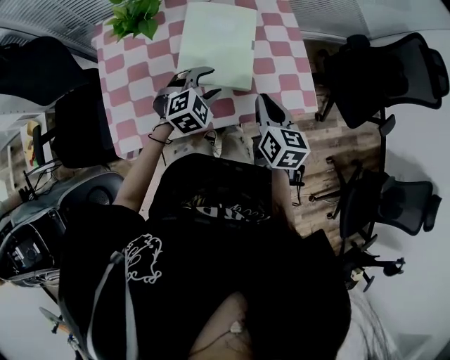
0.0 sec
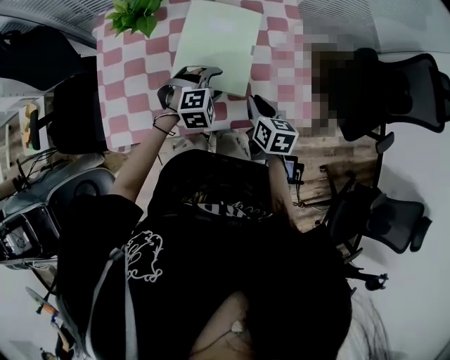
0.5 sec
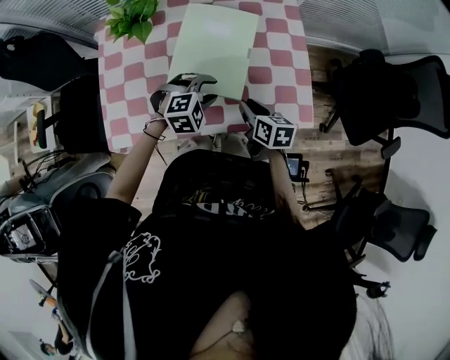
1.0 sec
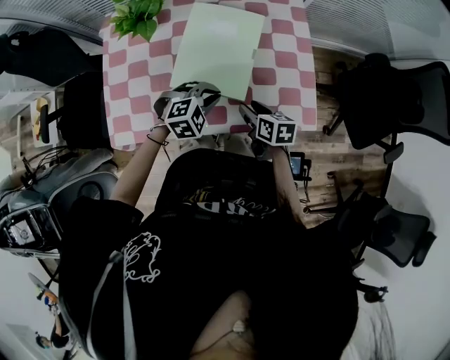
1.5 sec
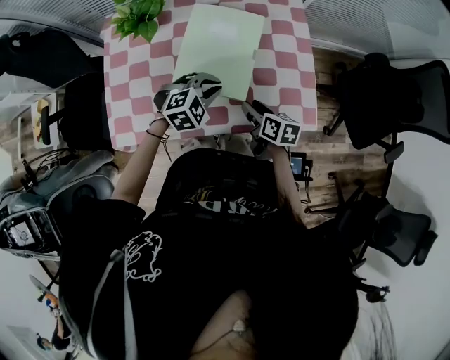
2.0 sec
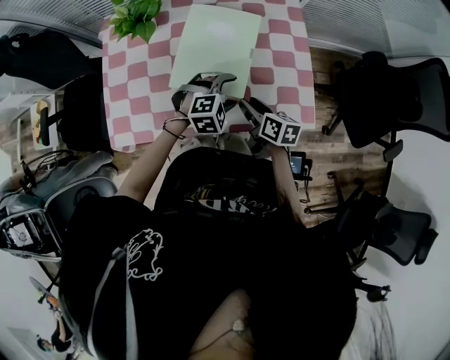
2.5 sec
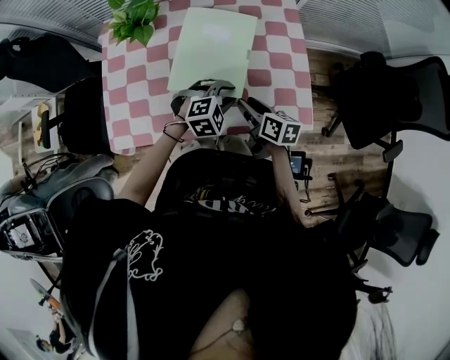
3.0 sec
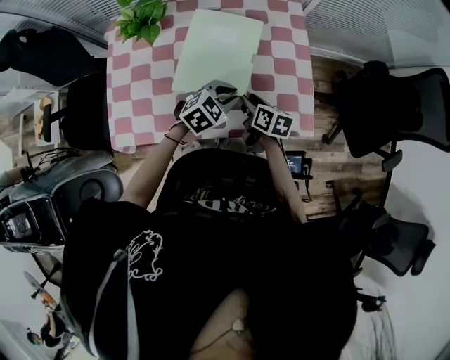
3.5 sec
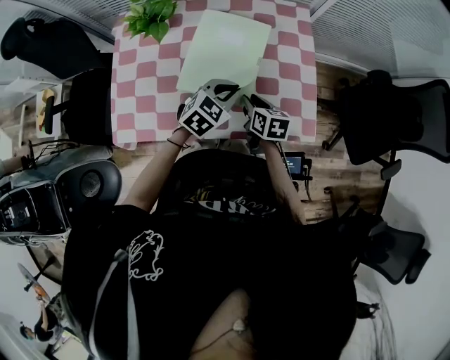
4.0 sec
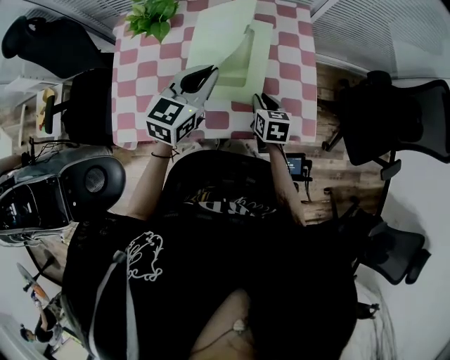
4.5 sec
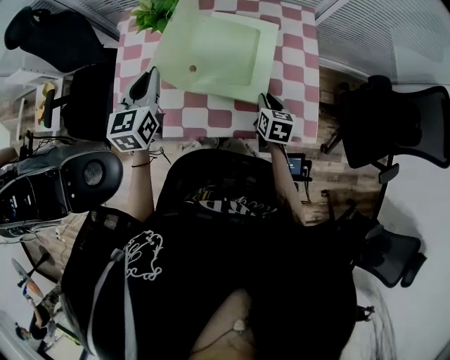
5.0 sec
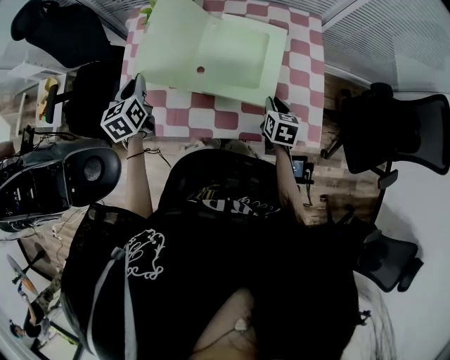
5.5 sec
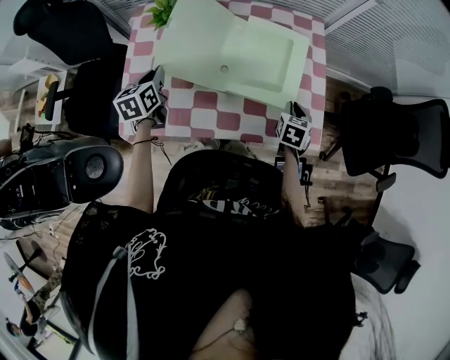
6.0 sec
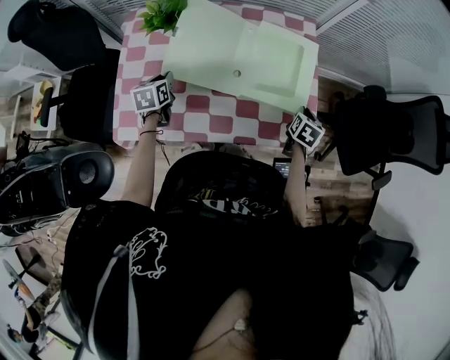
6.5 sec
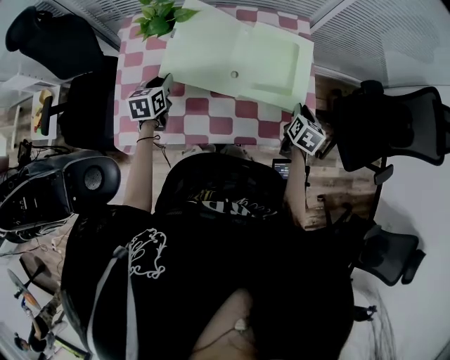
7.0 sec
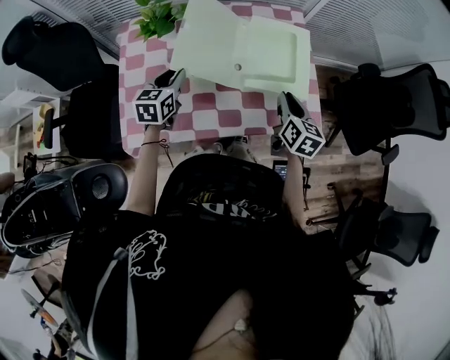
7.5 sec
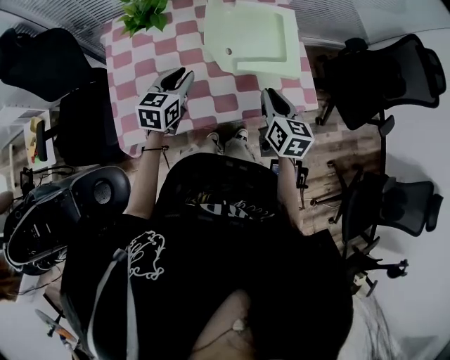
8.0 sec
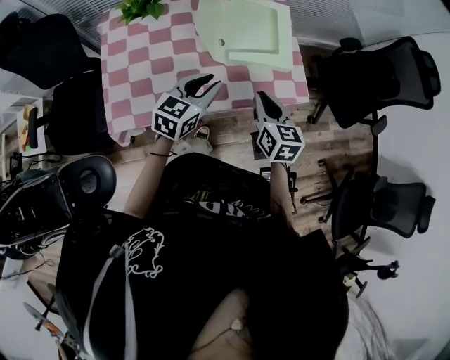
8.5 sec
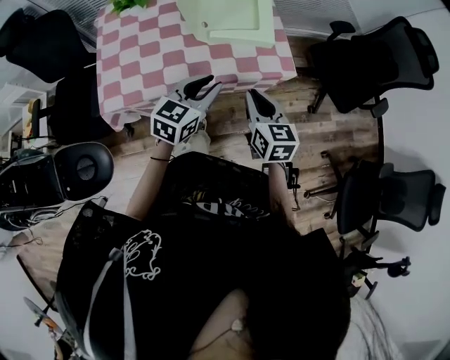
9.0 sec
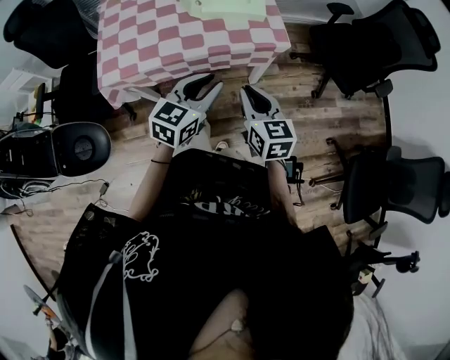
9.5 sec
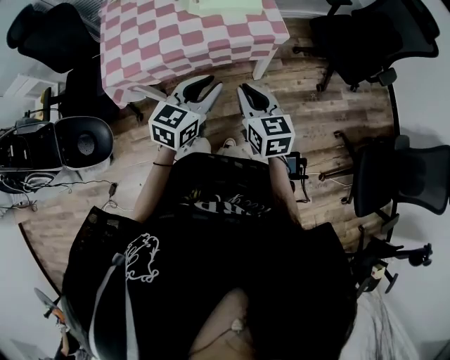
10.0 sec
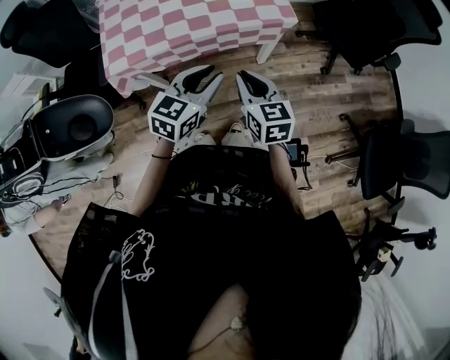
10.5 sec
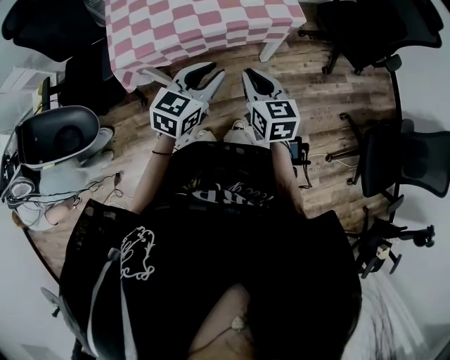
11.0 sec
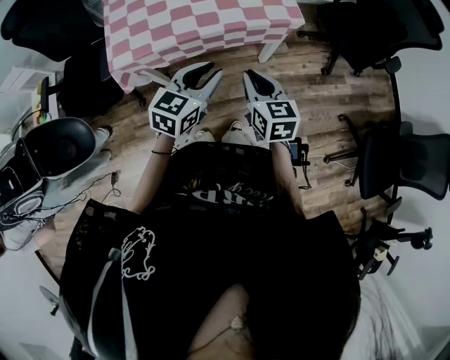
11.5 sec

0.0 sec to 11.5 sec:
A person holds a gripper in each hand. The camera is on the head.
0.0 sec to 2.0 sec: The right gripper goes roughly 15 cm downward, swivels roughly 30 degrees, and opens up, while the left gripper closes its fingers.
2.0 sec to 4.0 sec: The left gripper changes place by some 5 cm, rotates roughly 30 degrees, and opens, then closes again.
4.0 sec to 6.0 sec: The left gripper moves to the left, approximately 30 cm, and turns by some 60 degrees. Meanwhile the right gripper shifts approximately 10 cm to the right, and changes its angle by some 30 degrees.
6.0 sec to 7.5 sec: The right gripper moves upward and backward, about 10 cm, and swivels about 30 degrees. Meanwhile the left gripper goes approximately 10 cm to the right, moves about 5 cm downward and comes back, and rotates about 30 degrees.
7.5 sec to 9.5 sec: The left gripper goes about 50 cm to the right and backward, and rotates approximately 30 degrees; the right gripper shifts approximately 30 cm backward.
9.5 sec to 11.5 sec: The left gripper goes approximately 10 cm to the left and backward; the right gripper travels to the left by approximately 5 cm.

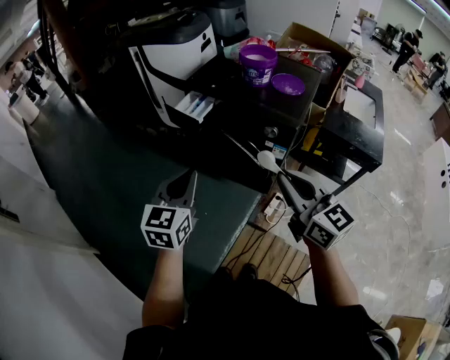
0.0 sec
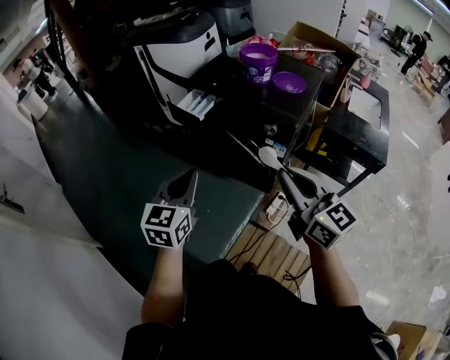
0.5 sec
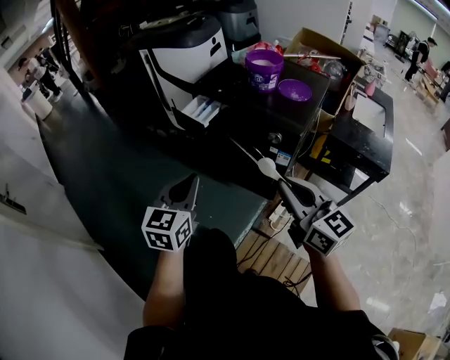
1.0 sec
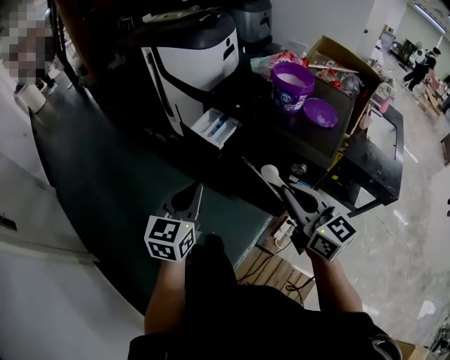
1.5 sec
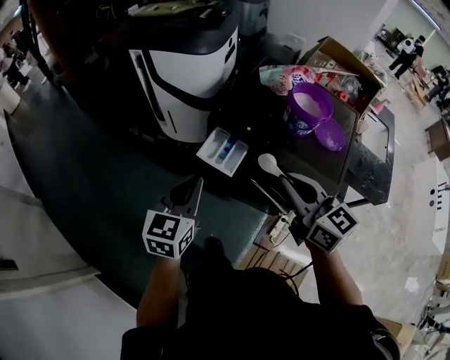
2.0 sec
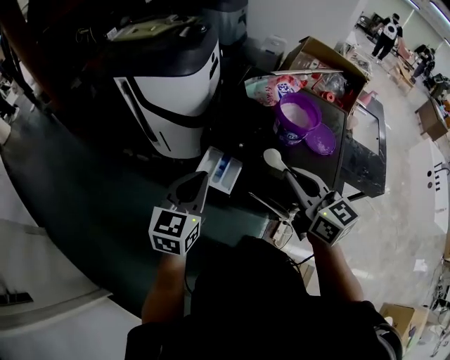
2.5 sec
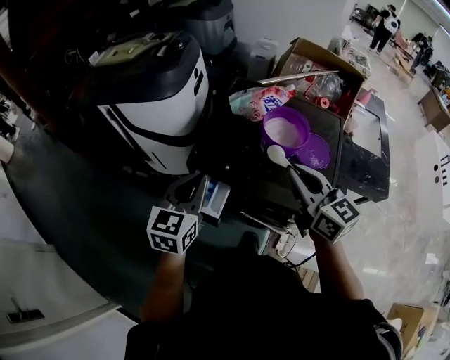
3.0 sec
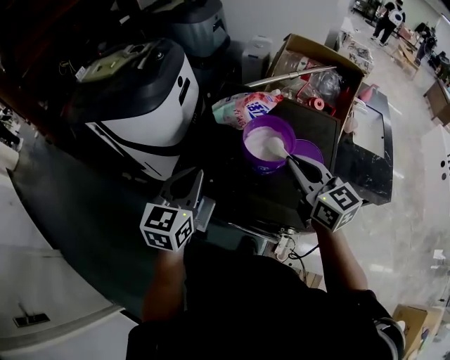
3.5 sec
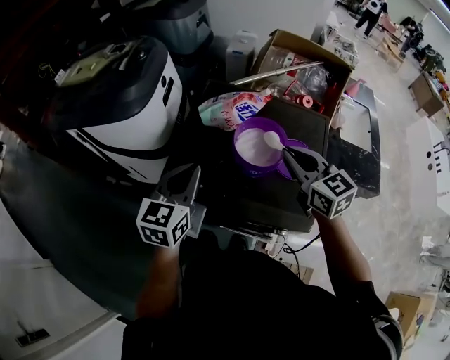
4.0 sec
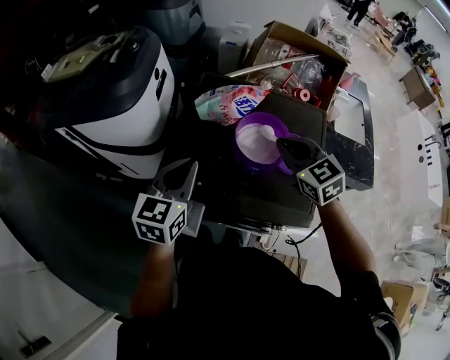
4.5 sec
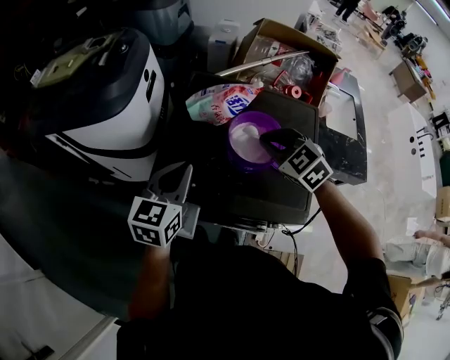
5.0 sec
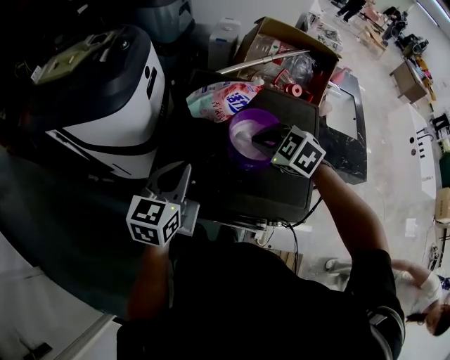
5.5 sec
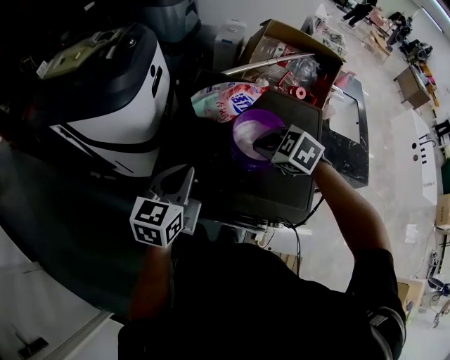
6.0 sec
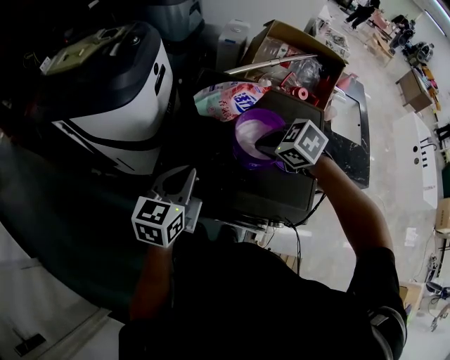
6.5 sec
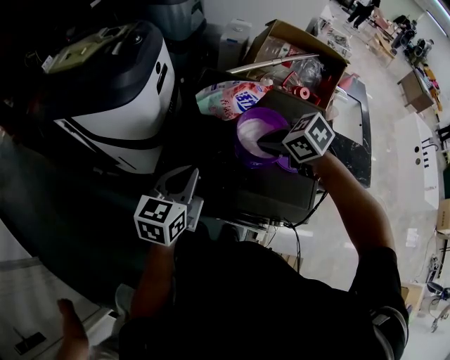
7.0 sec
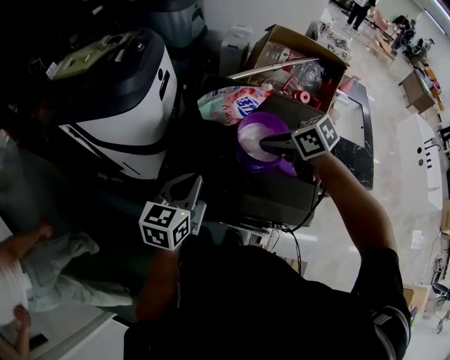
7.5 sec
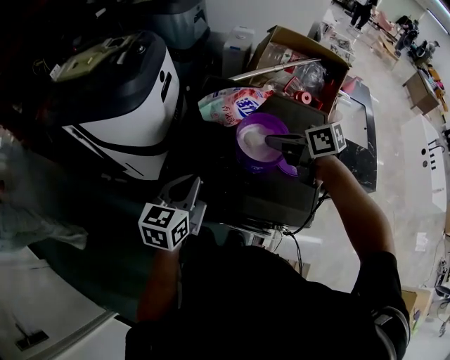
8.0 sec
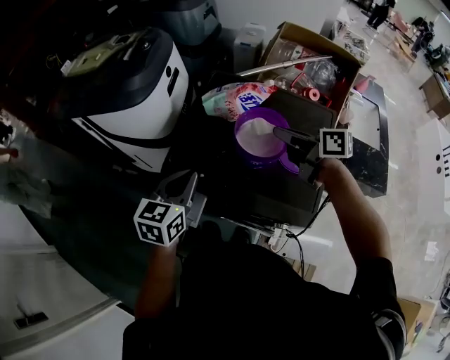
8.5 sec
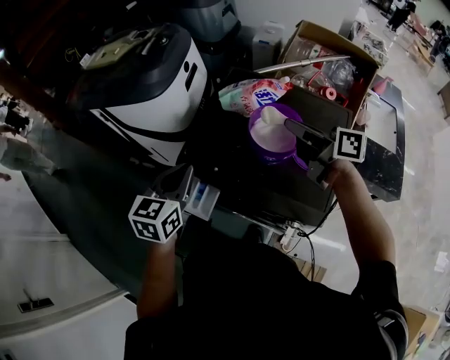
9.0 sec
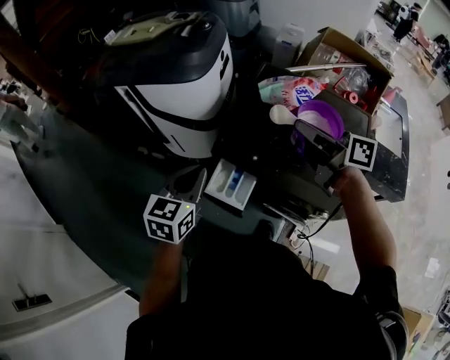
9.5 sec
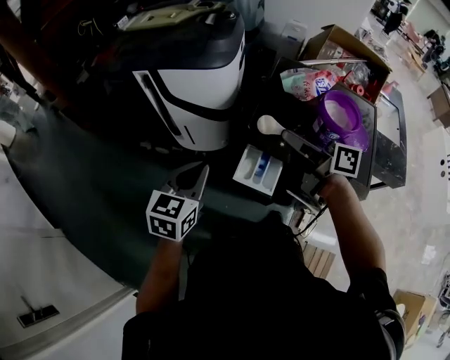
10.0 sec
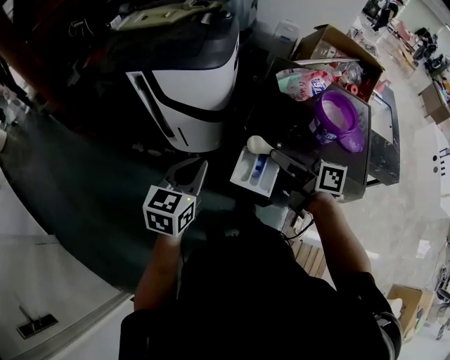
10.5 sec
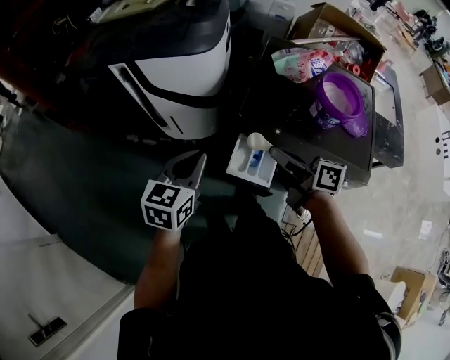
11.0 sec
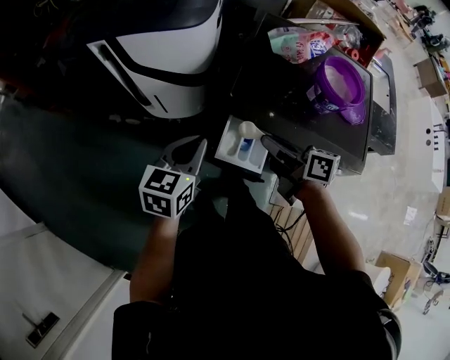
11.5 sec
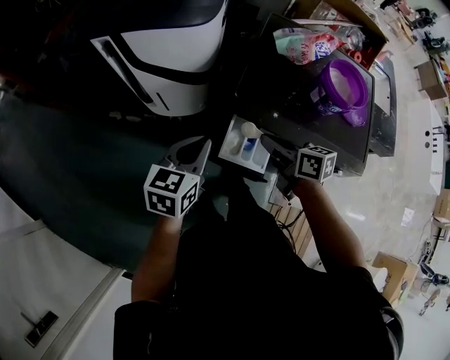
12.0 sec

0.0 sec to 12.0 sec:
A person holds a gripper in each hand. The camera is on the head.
0.0 sec to 2.0 sec: The two grippers go about 30 cm forward.
2.0 sec to 4.0 sec: Both grippers travel together forward and to the right, roughly 30 cm.
4.0 sec to 6.0 sec: The right gripper travels downward and to the left by roughly 10 cm, and tilts its fingers roughly 40 degrees downward.
6.0 sec to 8.0 sec: The right gripper changes place by some 5 cm, and rolls clockwise, seen from behind, by approximately 50 degrees.
8.0 sec to 10.0 sec: Both grippers move to the left, approximately 30 cm. The right gripper swivels some 30 degrees.
10.0 sec to 12.0 sec: The right gripper shifts about 20 cm downward, and swivels some 30 degrees, while the left gripper is displaced downward by about 10 cm.

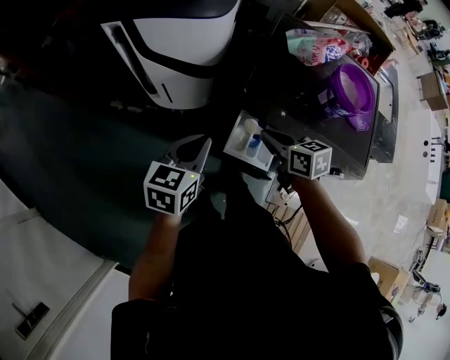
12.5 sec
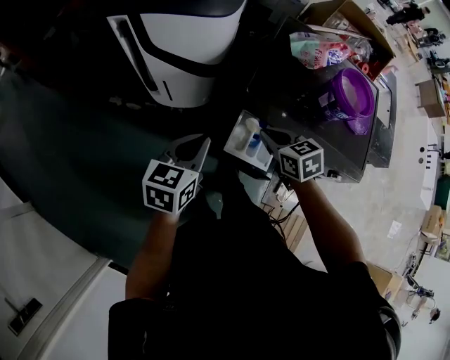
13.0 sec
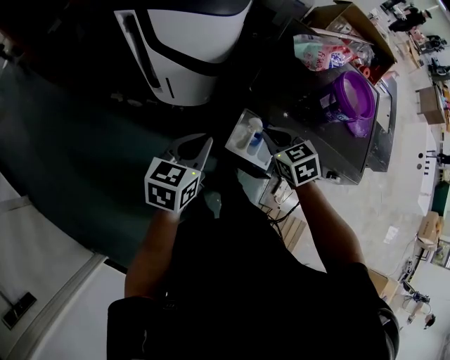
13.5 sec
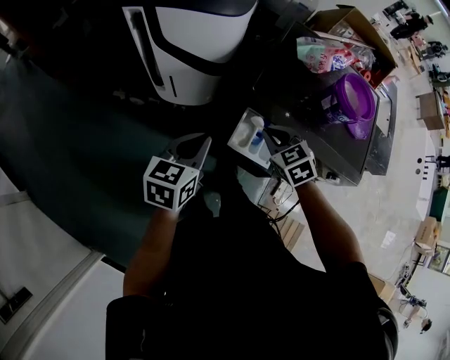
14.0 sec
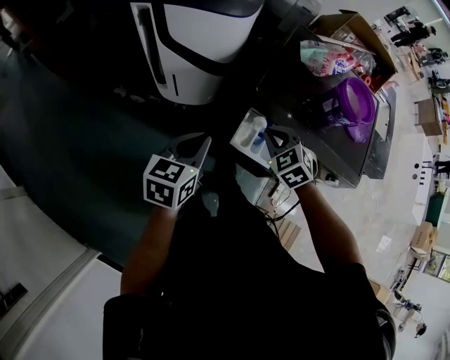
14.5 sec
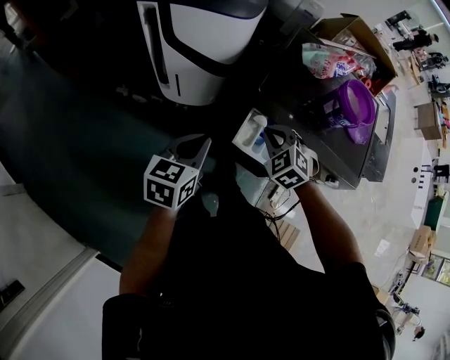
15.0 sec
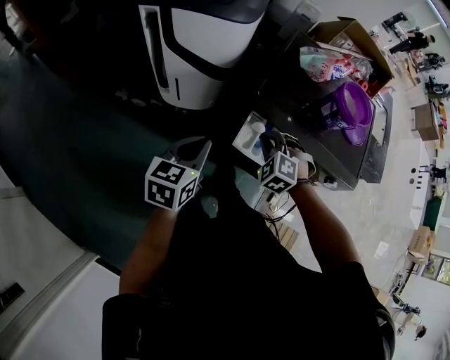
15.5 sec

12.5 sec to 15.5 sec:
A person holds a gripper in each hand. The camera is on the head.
12.5 sec to 14.0 sec: The right gripper turns by about 40 degrees.
14.0 sec to 15.5 sec: The right gripper turns by about 40 degrees.
